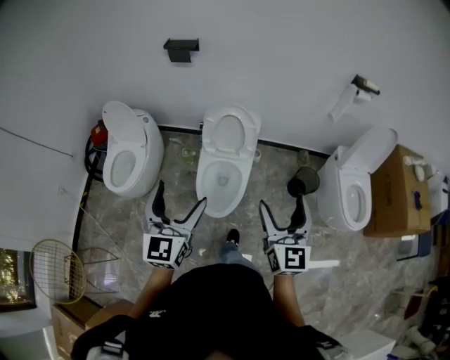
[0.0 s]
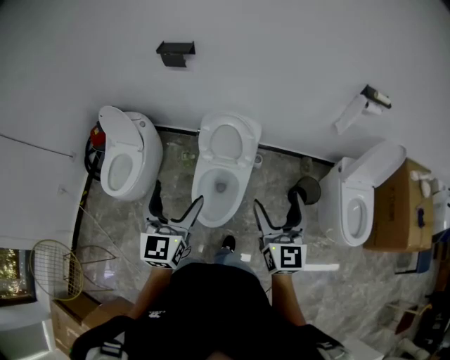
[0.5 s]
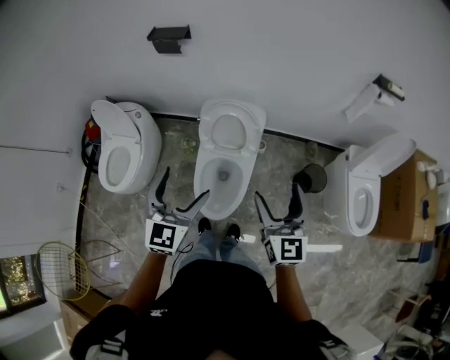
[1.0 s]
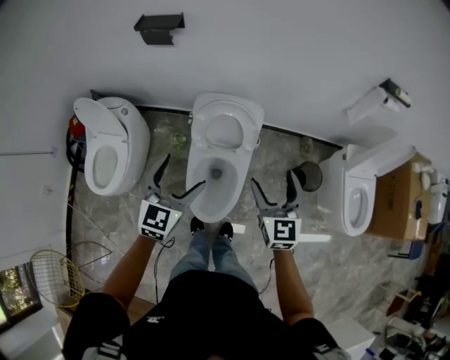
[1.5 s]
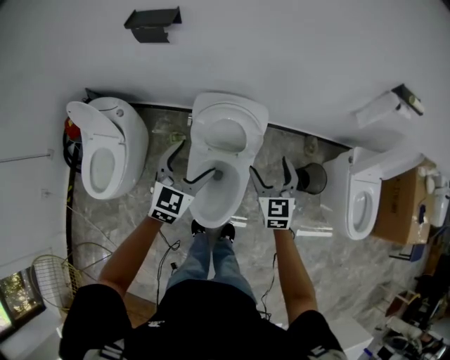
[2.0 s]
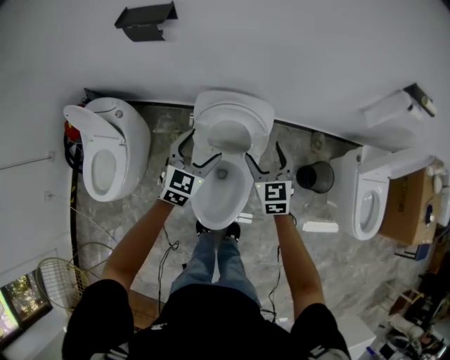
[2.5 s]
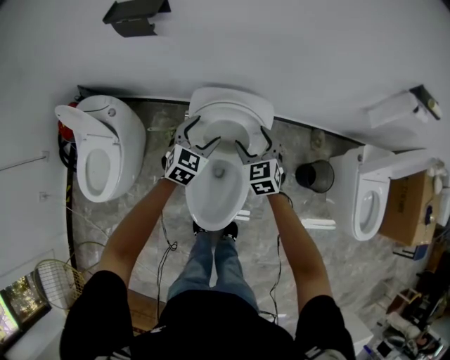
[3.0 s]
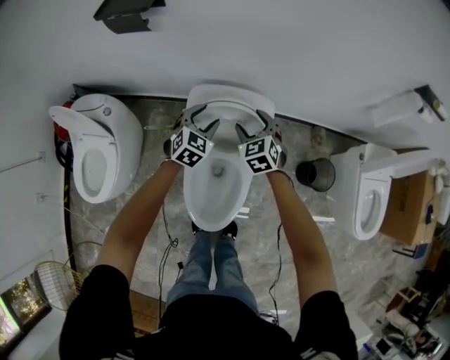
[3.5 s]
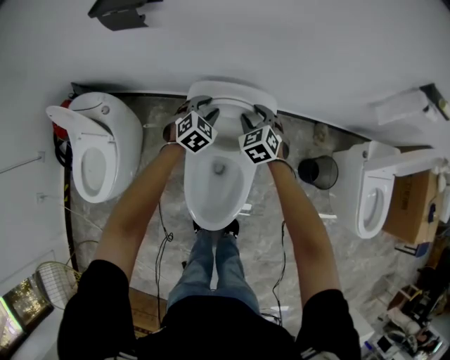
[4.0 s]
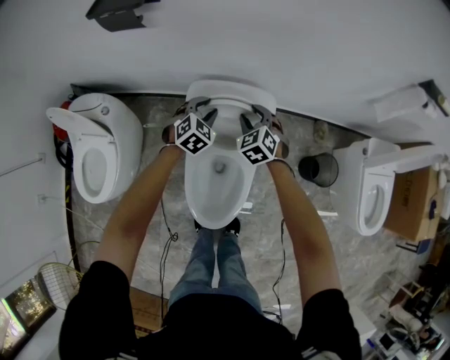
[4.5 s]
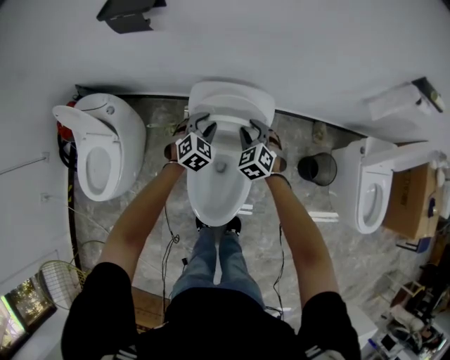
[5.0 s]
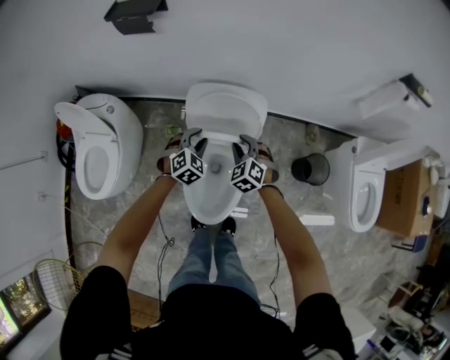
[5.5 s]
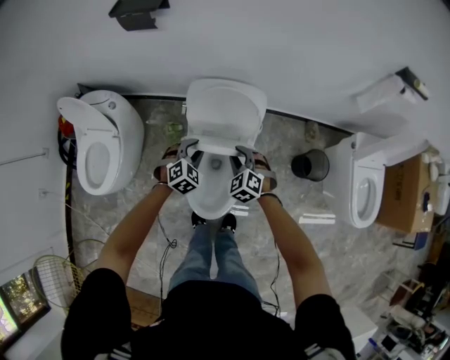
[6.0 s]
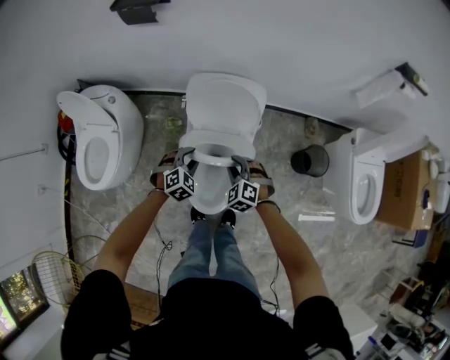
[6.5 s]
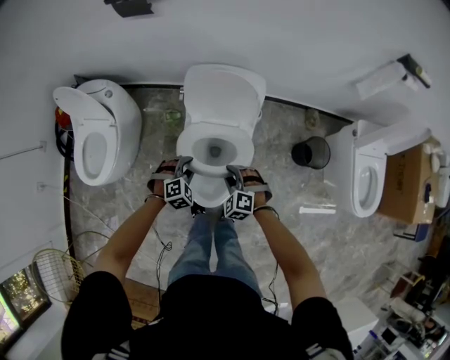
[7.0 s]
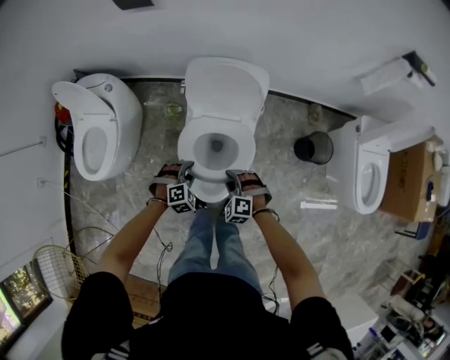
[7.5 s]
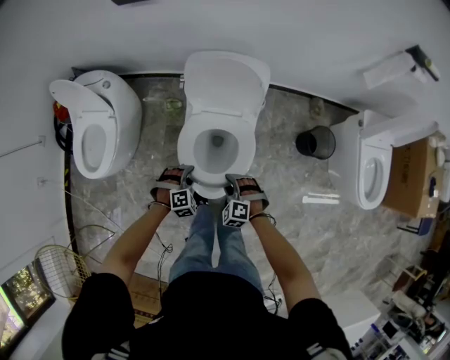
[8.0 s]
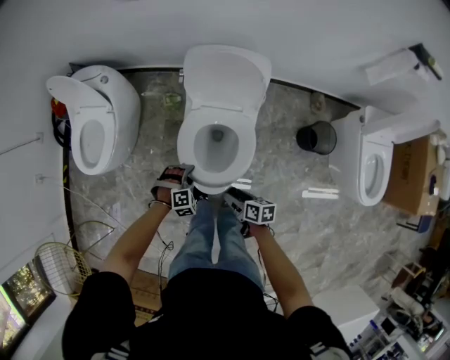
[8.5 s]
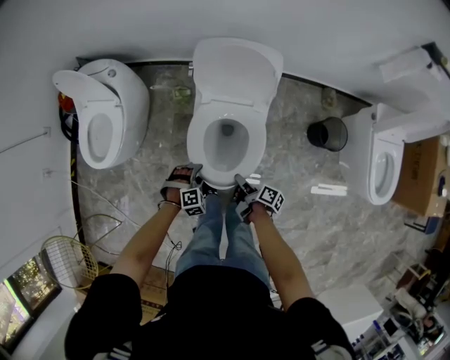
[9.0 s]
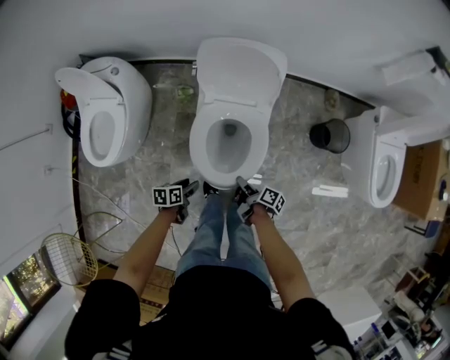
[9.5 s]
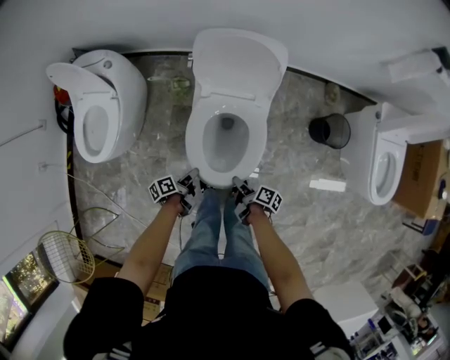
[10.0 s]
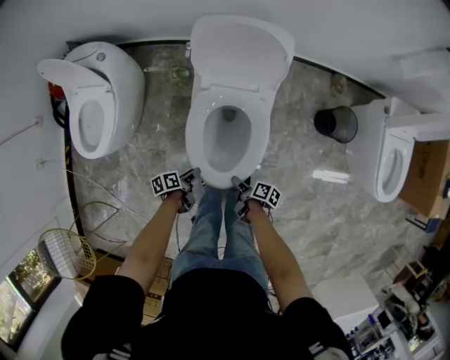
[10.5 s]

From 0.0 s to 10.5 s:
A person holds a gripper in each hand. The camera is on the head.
From 0.0 s to 2.0 s: Both grippers travel together forward and downward, roughly 40 cm. The left gripper rotates roughly 30 degrees. Meanwhile the right gripper rotates approximately 30 degrees.
From 2.0 s to 4.0 s: The right gripper shifts about 25 cm forward, downward and to the left, rotates some 30 degrees, and closes up, while the left gripper shifts approximately 30 cm downward and forward, swivels approximately 30 degrees, and closes.
From 4.0 s to 6.5 s: The grippers both shift backward by approximately 25 cm. The right gripper changes its angle by approximately 20 degrees.
From 6.5 s to 8.5 s: Both grippers move backward and downward, some 20 cm. The left gripper rotates approximately 20 degrees. The right gripper rotates around the line of its fingers by approximately 90 degrees, clockwise from behind.
From 8.5 s to 10.5 s: The right gripper goes about 15 cm downward, and turns by approximately 40 degrees, while the left gripper travels downward, to the left and backward by approximately 10 cm, and twists about 130 degrees counterclockwise, seen from behind.

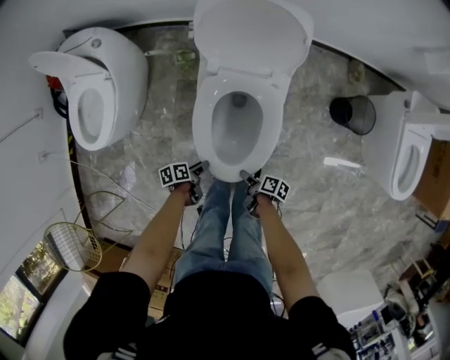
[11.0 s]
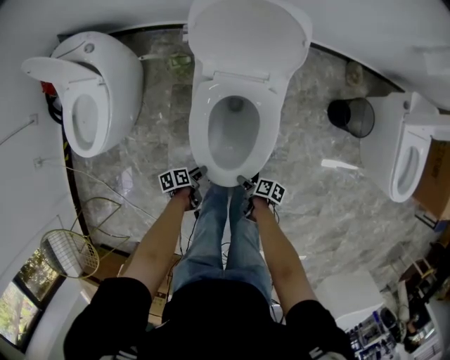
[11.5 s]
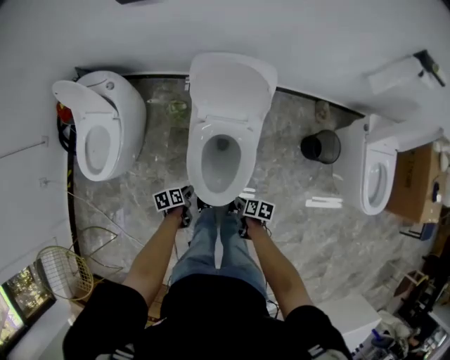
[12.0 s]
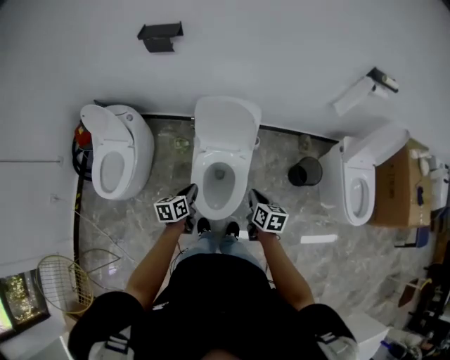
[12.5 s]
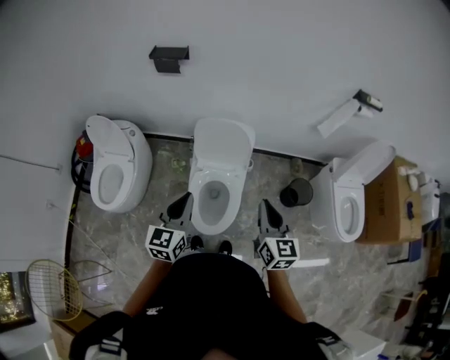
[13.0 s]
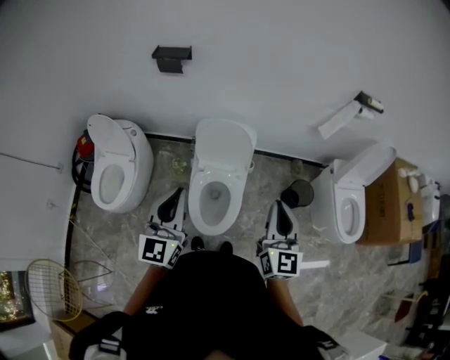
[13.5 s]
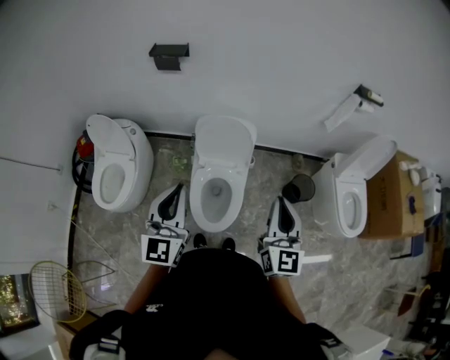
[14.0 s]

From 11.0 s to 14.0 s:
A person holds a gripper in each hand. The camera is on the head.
From 11.0 s to 12.5 s: Both grippers move upward, some 35 cm. The right gripper rolls counterclockwise, seen from behind, by some 50 degrees, and closes up, while the left gripper turns by roughly 40 degrees.
From 12.5 s to 14.0 s: Both grippers travel together upward, approximately 30 cm. The left gripper tips its fingers upward by approximately 40 degrees, while the right gripper points its fingers some 40 degrees further upward.

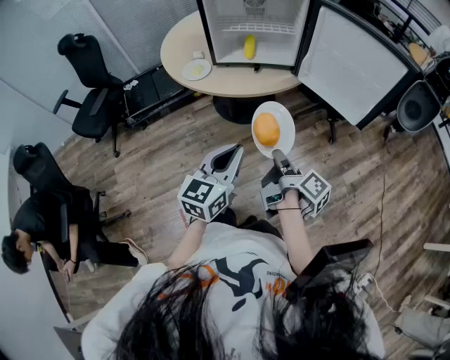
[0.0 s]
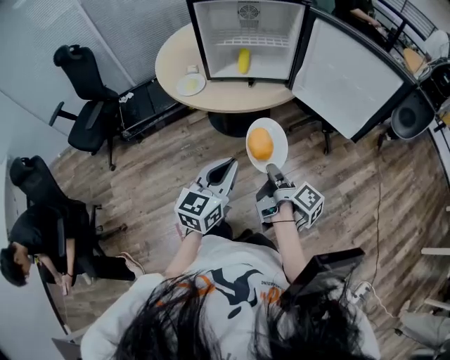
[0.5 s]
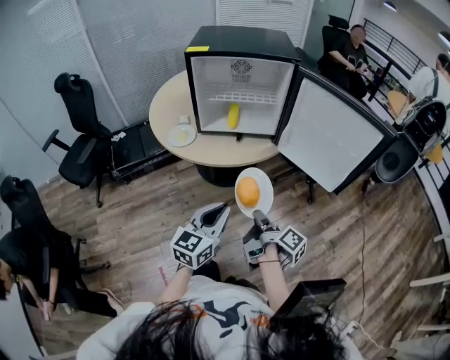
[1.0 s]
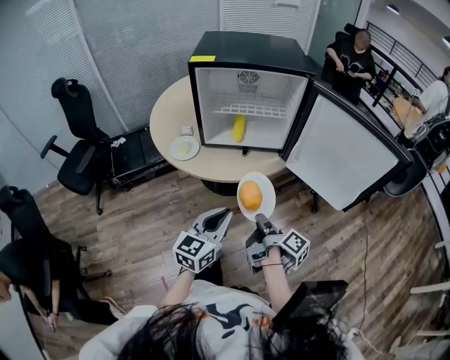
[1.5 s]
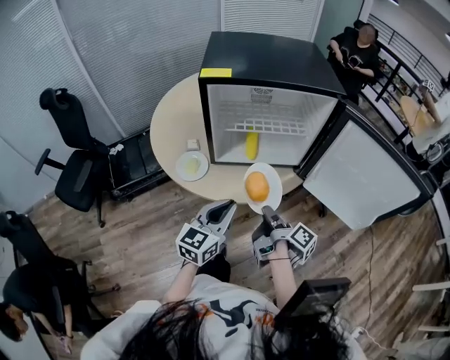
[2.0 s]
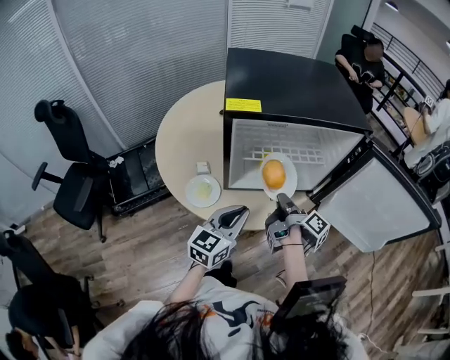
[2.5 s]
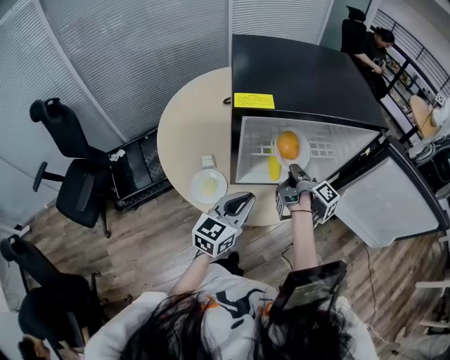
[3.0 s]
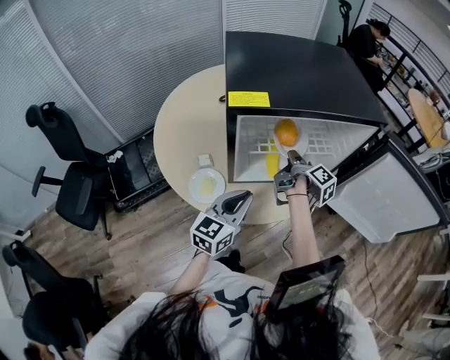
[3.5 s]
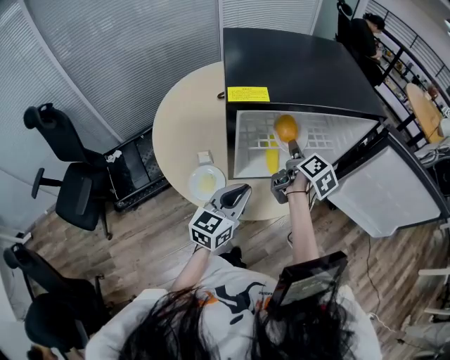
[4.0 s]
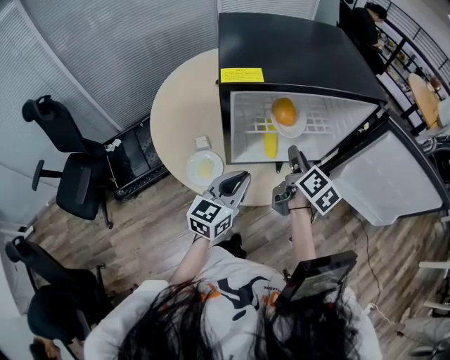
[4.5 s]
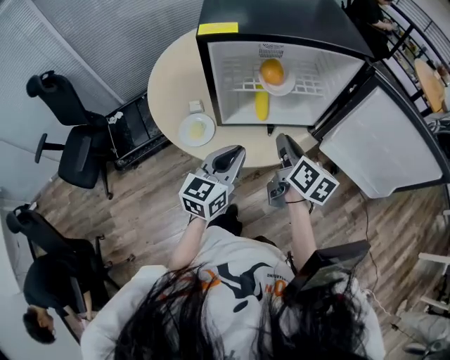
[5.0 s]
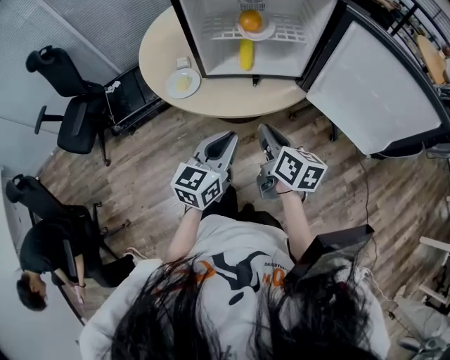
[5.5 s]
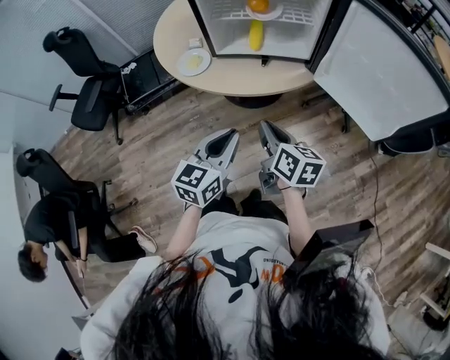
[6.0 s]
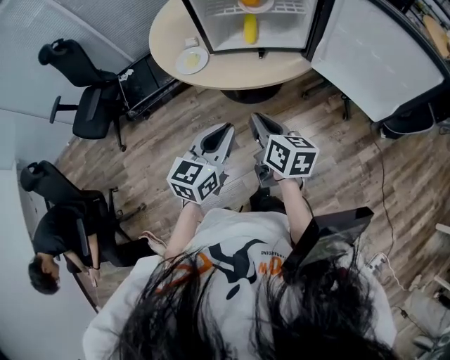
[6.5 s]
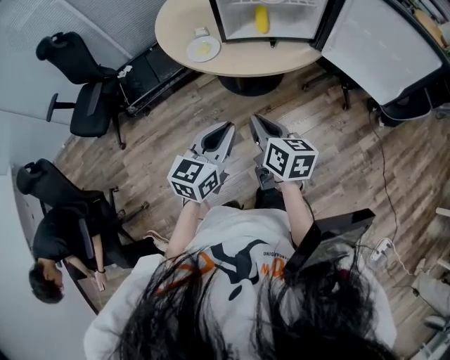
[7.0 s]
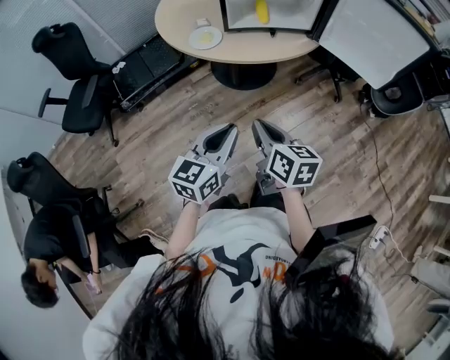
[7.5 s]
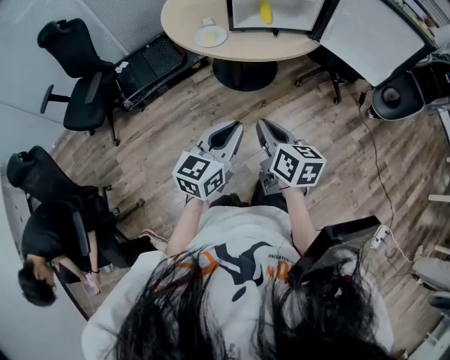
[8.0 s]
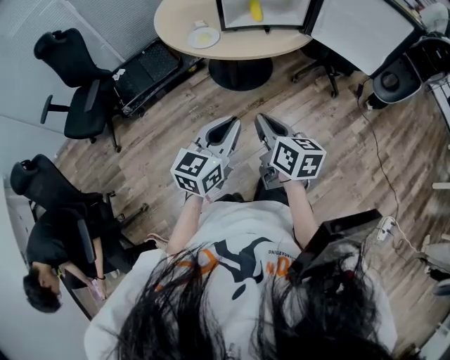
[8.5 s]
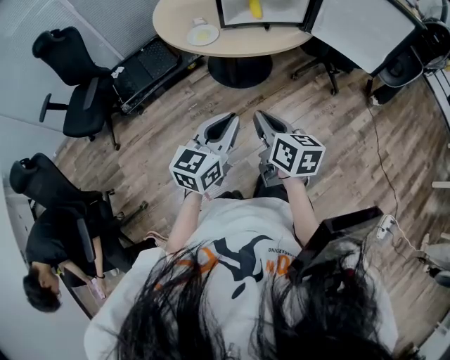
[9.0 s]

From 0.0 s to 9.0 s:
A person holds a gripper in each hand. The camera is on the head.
From 0.0 s to 2.0 s: The grippers both shift forward by some 25 cm.
From 2.0 s to 4.5 s: The left gripper heads forward and to the left, covering some 15 cm. Meanwhile the right gripper goes some 20 cm forward, changes its angle by approximately 40 degrees, and opens.
From 4.5 s to 7.0 s: The grippers both shift backward by approximately 35 cm. The right gripper turns by about 40 degrees, and closes.
From 7.0 s to 9.0 s: The two grippers go roughly 10 cm backward.

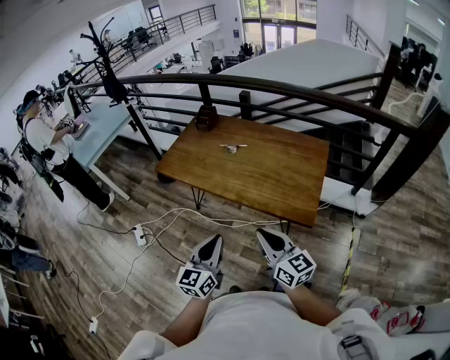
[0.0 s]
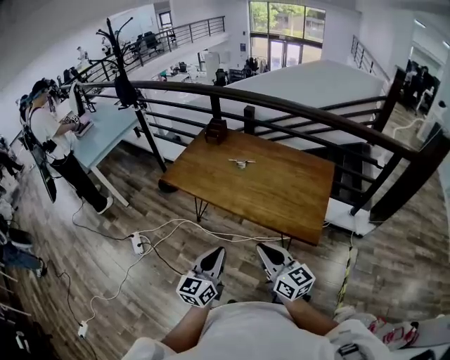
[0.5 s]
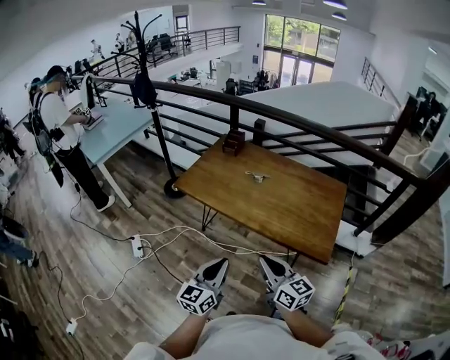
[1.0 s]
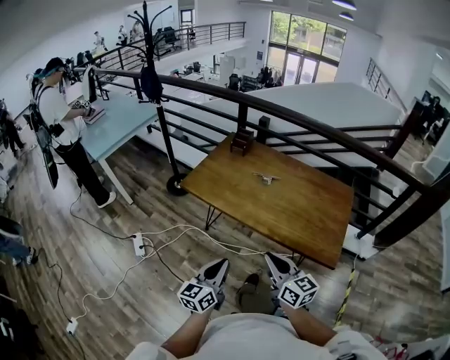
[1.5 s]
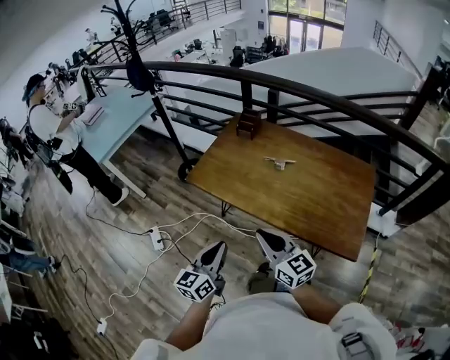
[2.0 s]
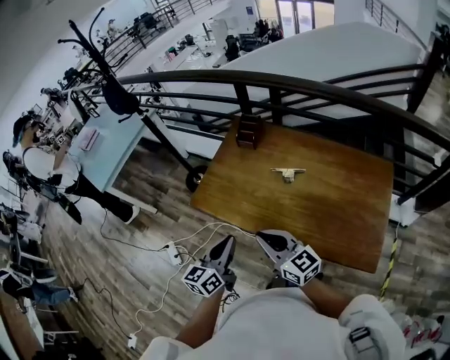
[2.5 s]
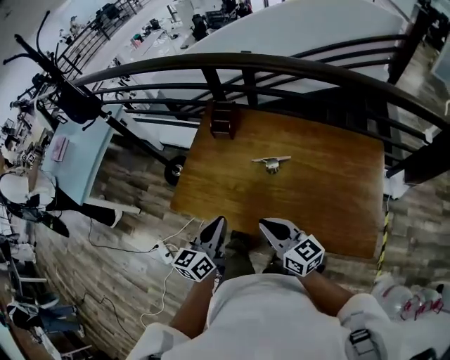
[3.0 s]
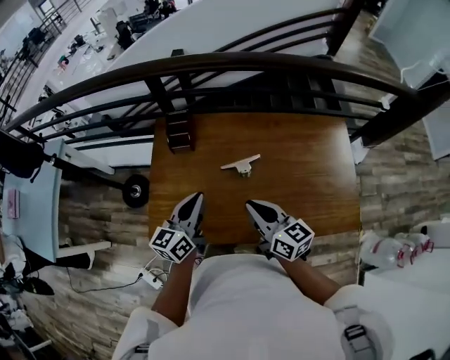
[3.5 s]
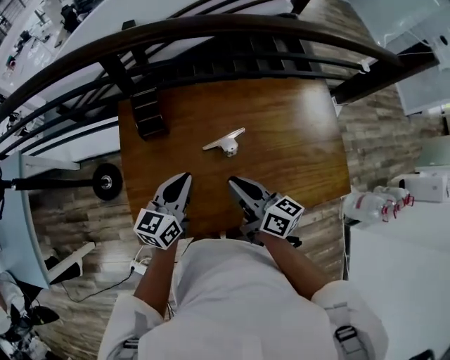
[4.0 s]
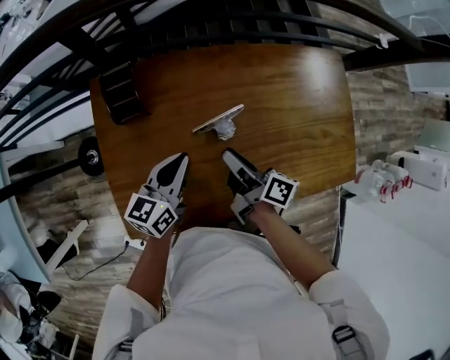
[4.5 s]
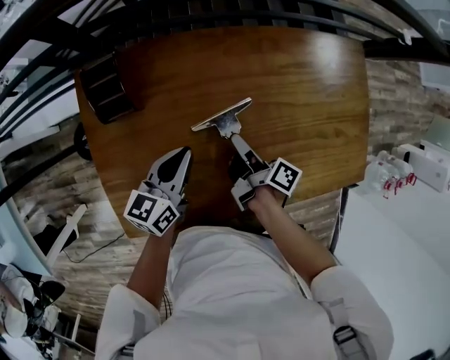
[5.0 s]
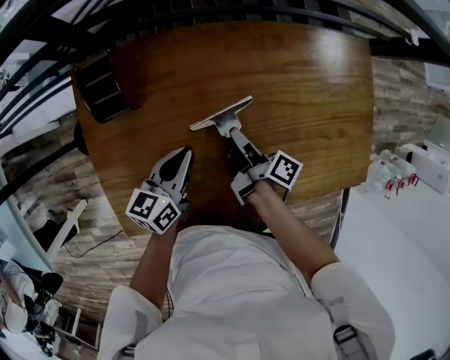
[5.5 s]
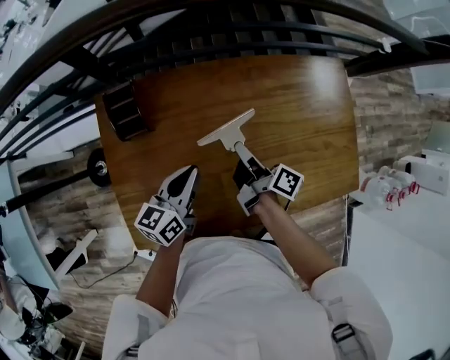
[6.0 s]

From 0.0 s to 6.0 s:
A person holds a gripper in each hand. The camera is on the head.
From 0.0 s to 2.0 s: Both grippers travel together to the left and forward, roughly 30 cm.
From 2.0 s to 4.0 s: Both grippers are carried roughly 50 cm. The right gripper turns by approximately 50 degrees. Meanwhile the left gripper turns by roughly 40 degrees.
From 4.0 s to 6.0 s: The left gripper travels forward and downward by some 10 cm, while the right gripper travels forward and downward by roughly 20 cm, rotates roughly 40 degrees, and opens, then closes once more.
